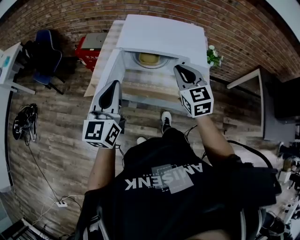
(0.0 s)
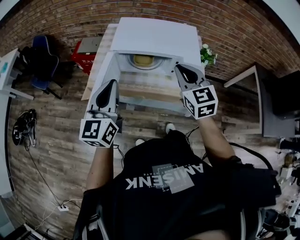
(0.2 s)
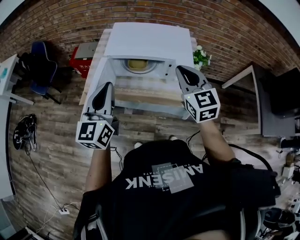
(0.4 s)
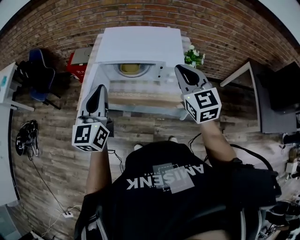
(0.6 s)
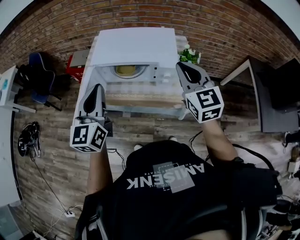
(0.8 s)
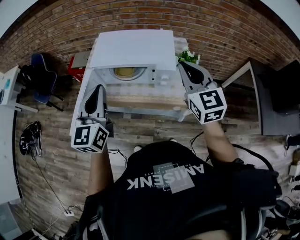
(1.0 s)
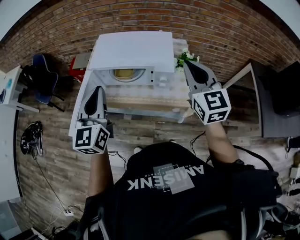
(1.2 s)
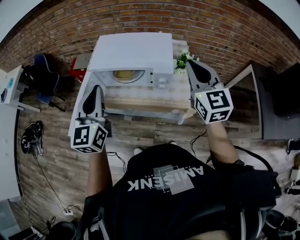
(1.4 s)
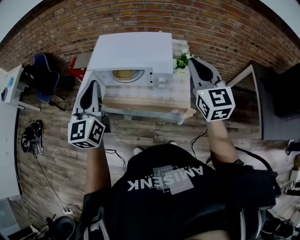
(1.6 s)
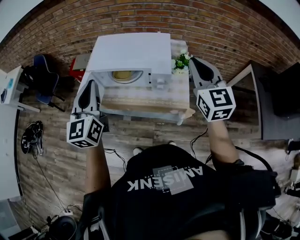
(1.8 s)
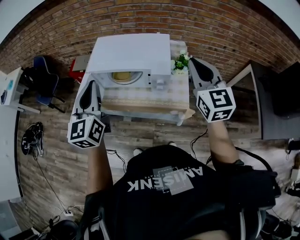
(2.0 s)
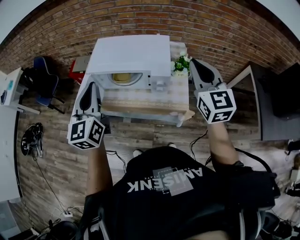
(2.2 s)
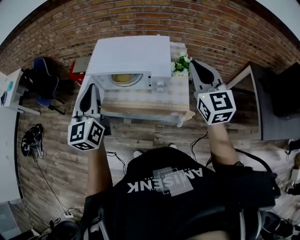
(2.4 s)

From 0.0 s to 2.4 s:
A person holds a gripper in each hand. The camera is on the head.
From 0.0 s to 1.2 s: The right gripper travels to the right and upward by some 25 cm; the left gripper moves to the right and upward, some 15 cm.
From 1.2 s to 2.4 s: The grippers move only a little.

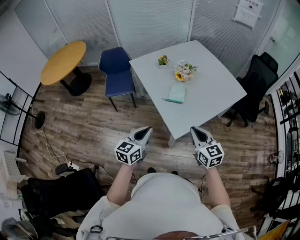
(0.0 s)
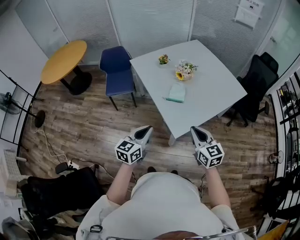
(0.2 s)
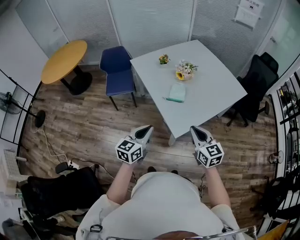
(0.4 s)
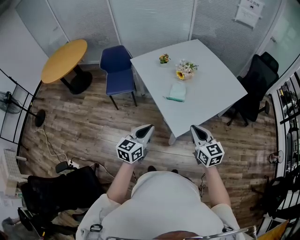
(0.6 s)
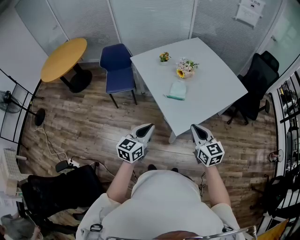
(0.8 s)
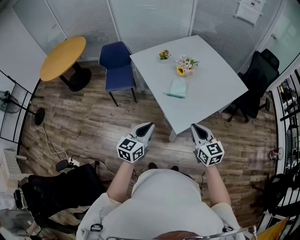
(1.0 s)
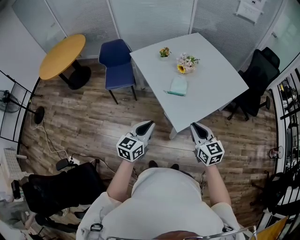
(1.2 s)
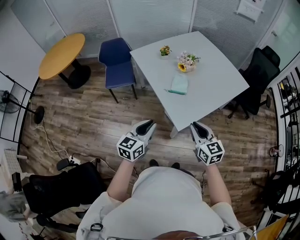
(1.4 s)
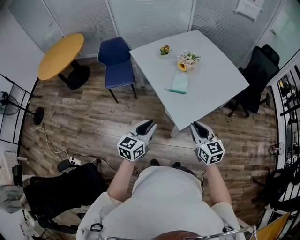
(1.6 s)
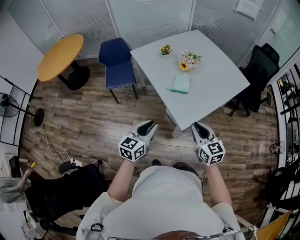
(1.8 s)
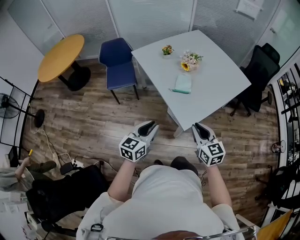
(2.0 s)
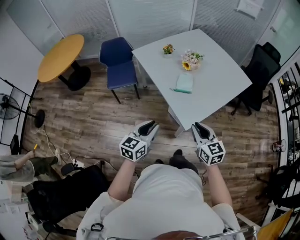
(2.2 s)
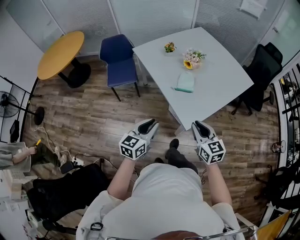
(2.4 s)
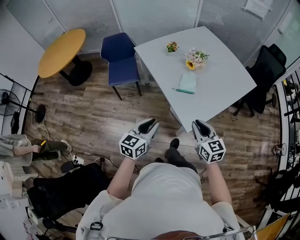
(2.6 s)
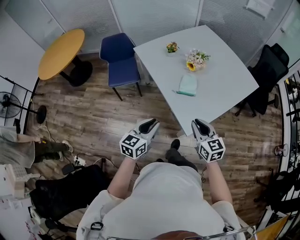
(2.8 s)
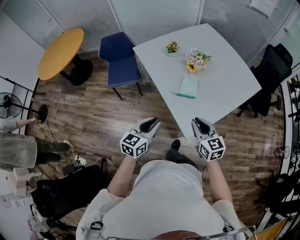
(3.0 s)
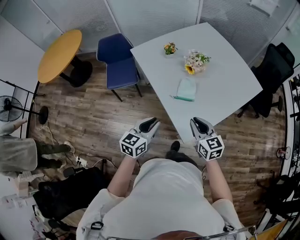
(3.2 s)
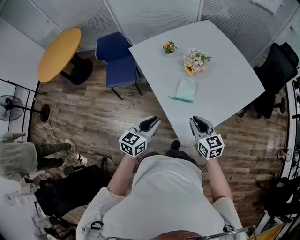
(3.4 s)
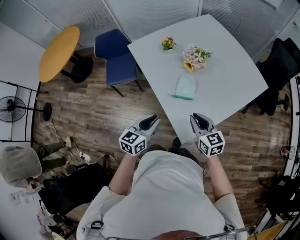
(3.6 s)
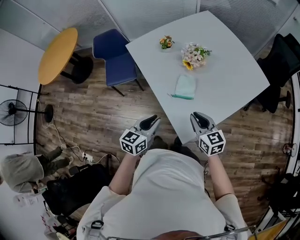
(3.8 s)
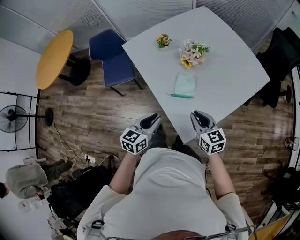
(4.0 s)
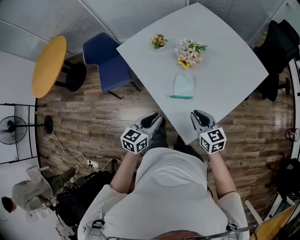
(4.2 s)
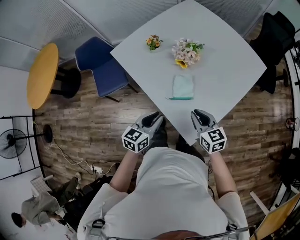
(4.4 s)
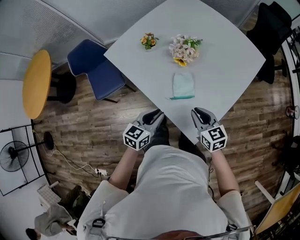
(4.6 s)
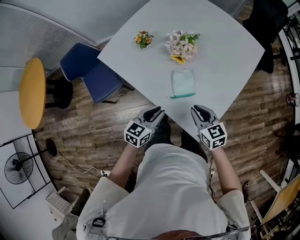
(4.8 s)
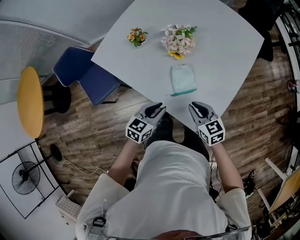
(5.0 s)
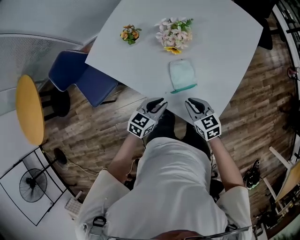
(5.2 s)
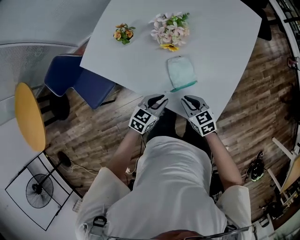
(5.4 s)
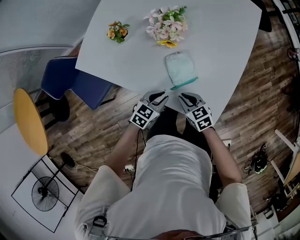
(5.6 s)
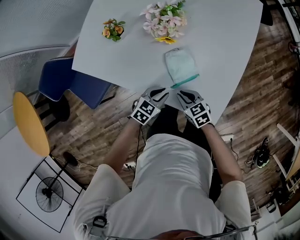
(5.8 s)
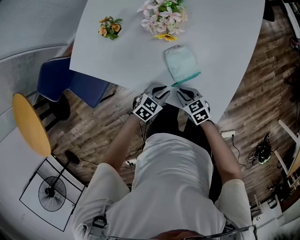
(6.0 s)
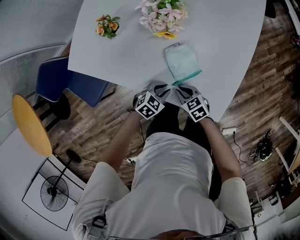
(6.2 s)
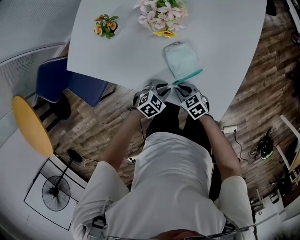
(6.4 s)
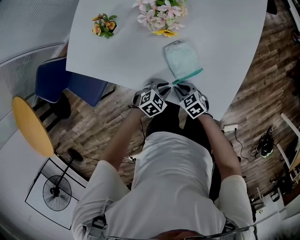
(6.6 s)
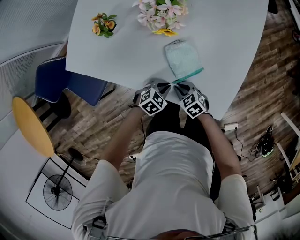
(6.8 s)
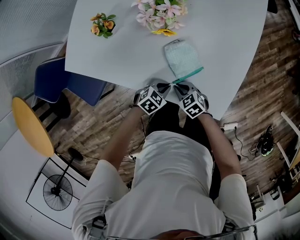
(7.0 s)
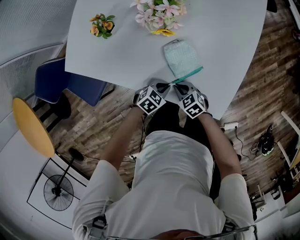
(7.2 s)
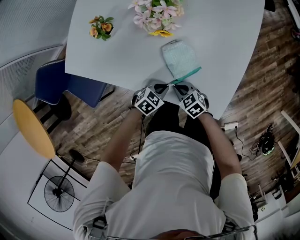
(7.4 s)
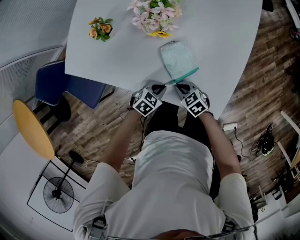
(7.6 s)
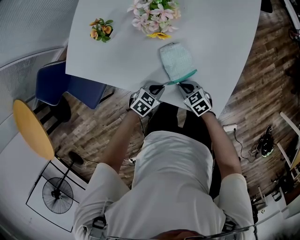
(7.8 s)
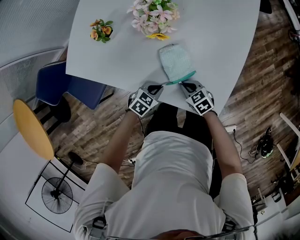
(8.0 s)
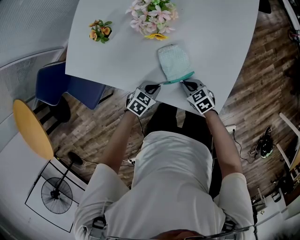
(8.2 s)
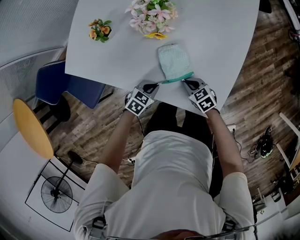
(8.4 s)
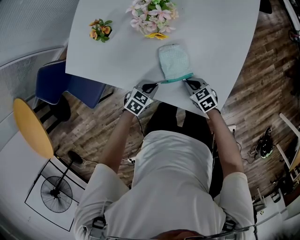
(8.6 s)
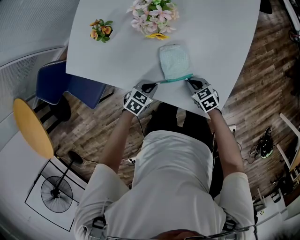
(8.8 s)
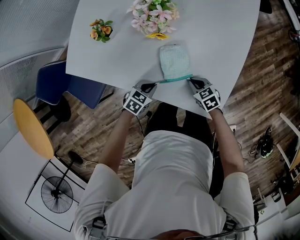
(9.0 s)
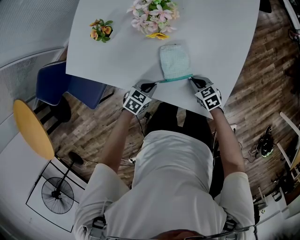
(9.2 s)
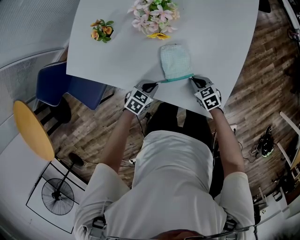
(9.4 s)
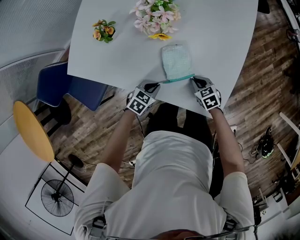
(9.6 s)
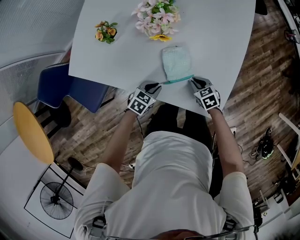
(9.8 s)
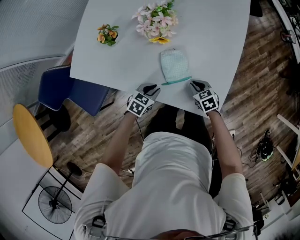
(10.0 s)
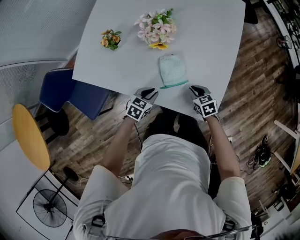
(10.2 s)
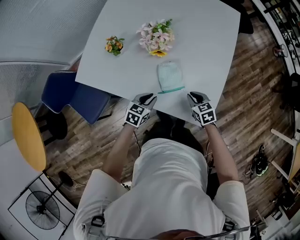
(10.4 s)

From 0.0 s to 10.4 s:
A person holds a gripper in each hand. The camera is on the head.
From 0.0 s to 1.4 s: The grippers make only small movements.
From 1.4 s to 3.0 s: Both grippers travel together forward, approximately 10 cm.
From 3.0 s to 4.4 s: The right gripper moves forward and downward, some 20 cm; the left gripper moves forward, roughly 20 cm.
From 4.4 s to 6.0 s: Both grippers travel together downward, approximately 25 cm. The left gripper swivels about 60 degrees. The right gripper rotates approximately 30 degrees.
From 6.0 s to 7.4 s: The grippers stay close to where they were, moving slightly.
From 7.4 s to 9.0 s: The right gripper shifts by approximately 10 cm.
From 9.0 s to 10.4 s: The grippers both shift upward by roughly 10 cm.

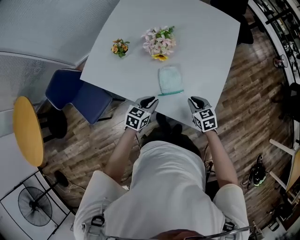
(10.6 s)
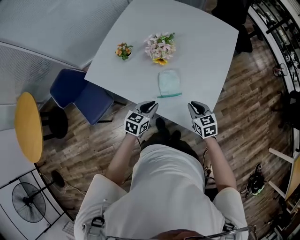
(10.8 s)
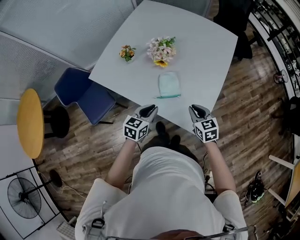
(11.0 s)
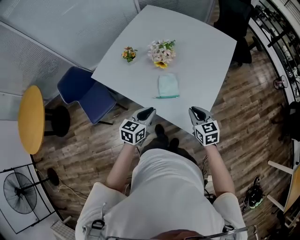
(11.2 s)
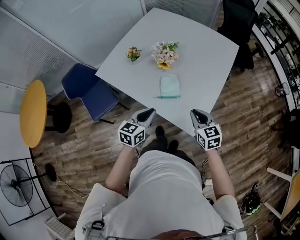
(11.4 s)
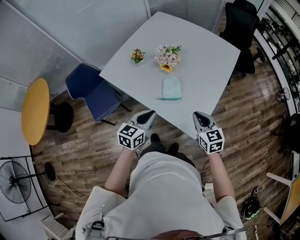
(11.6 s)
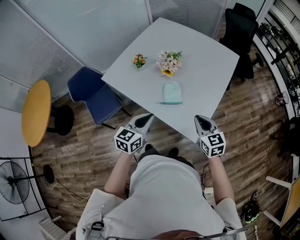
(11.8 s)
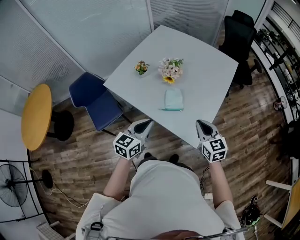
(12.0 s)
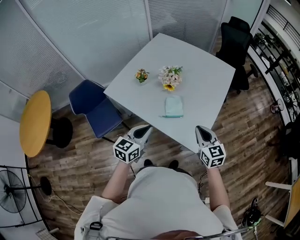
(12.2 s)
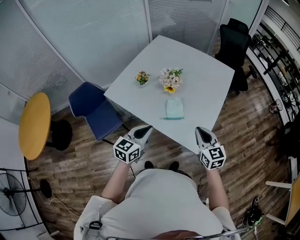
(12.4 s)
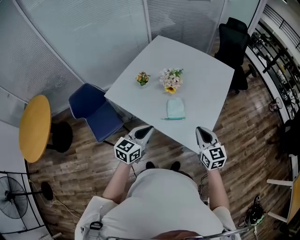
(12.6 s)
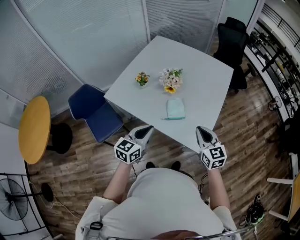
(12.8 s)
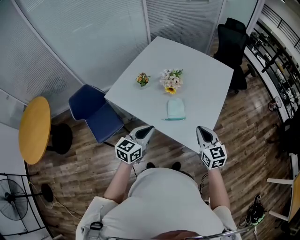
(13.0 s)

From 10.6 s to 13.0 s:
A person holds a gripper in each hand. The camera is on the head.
From 10.6 s to 11.8 s: The grippers both shift upward and backward by some 25 cm. The right gripper changes its angle by some 20 degrees. Meanwhile the left gripper changes its angle by about 30 degrees.
From 11.8 s to 13.0 s: The left gripper moves to the left, approximately 5 cm. The right gripper travels upward and to the left by some 10 cm.

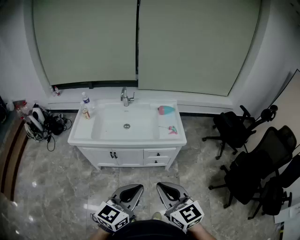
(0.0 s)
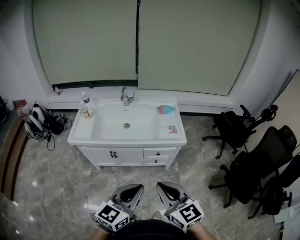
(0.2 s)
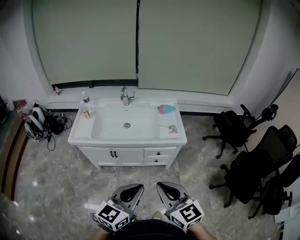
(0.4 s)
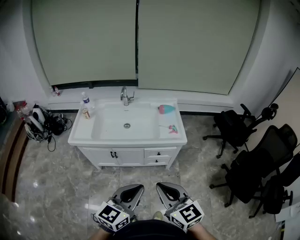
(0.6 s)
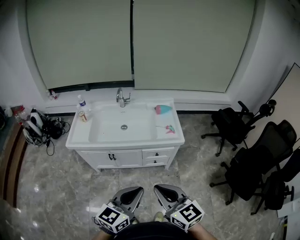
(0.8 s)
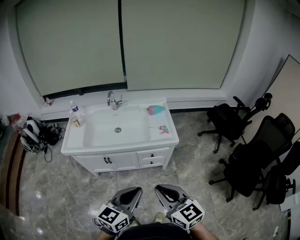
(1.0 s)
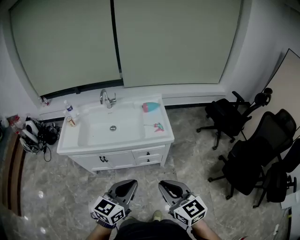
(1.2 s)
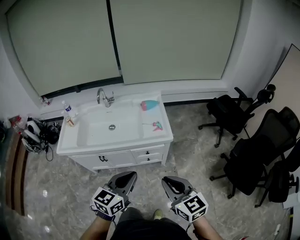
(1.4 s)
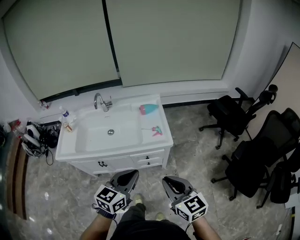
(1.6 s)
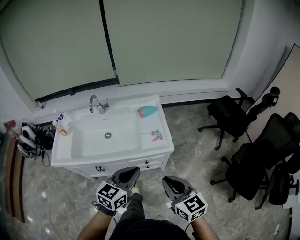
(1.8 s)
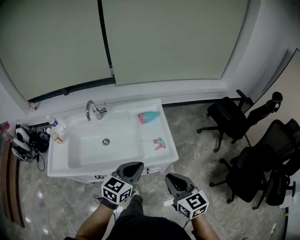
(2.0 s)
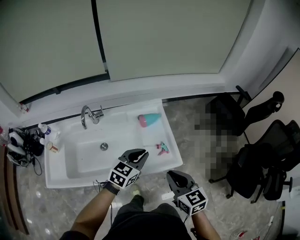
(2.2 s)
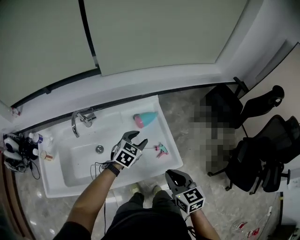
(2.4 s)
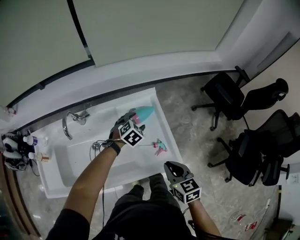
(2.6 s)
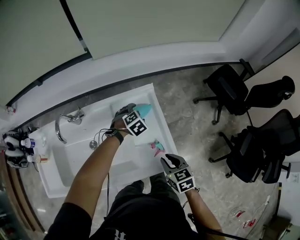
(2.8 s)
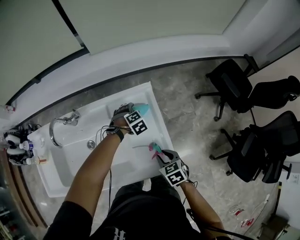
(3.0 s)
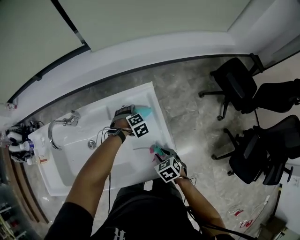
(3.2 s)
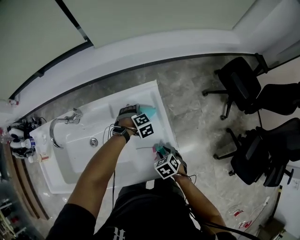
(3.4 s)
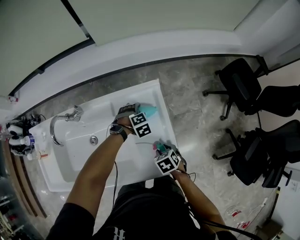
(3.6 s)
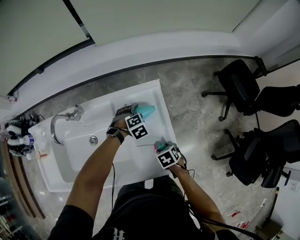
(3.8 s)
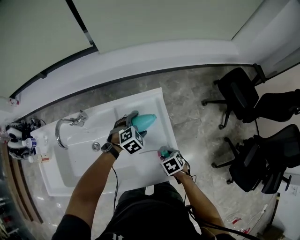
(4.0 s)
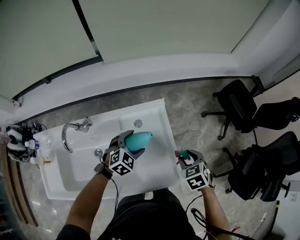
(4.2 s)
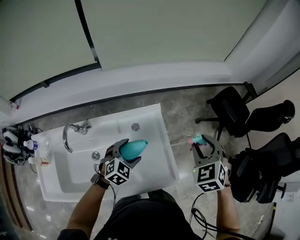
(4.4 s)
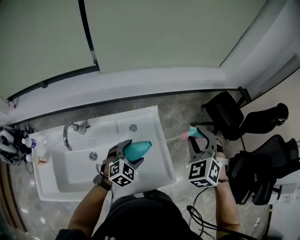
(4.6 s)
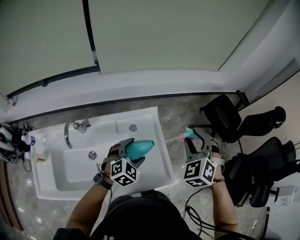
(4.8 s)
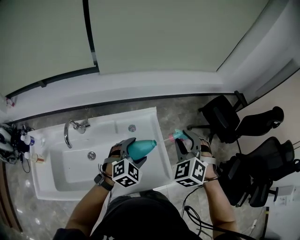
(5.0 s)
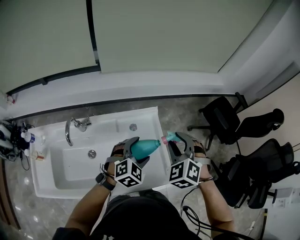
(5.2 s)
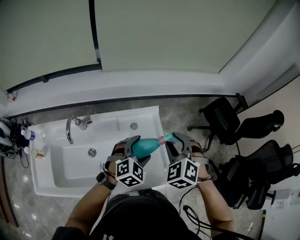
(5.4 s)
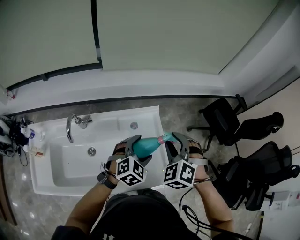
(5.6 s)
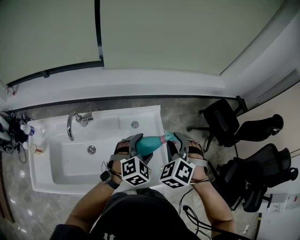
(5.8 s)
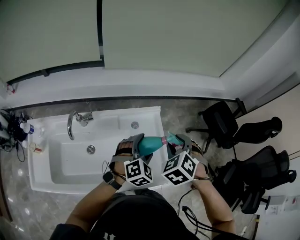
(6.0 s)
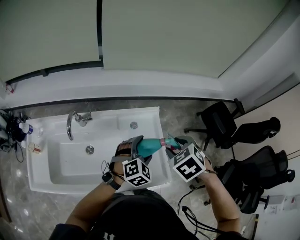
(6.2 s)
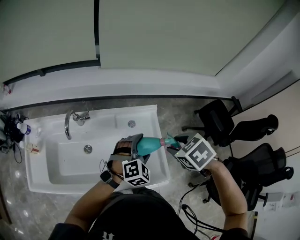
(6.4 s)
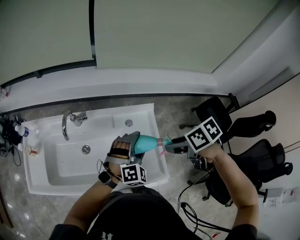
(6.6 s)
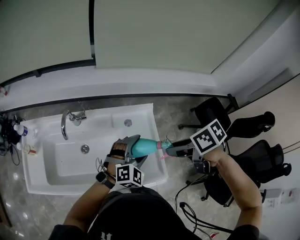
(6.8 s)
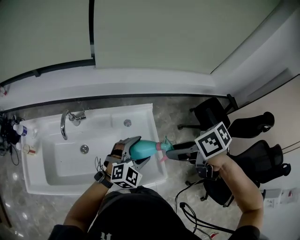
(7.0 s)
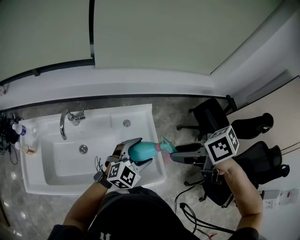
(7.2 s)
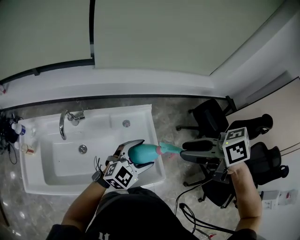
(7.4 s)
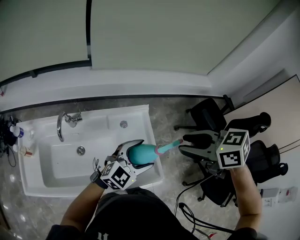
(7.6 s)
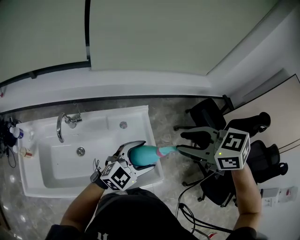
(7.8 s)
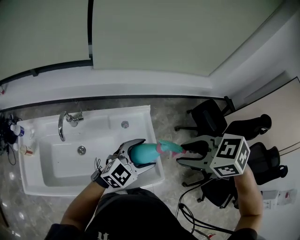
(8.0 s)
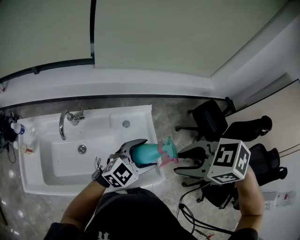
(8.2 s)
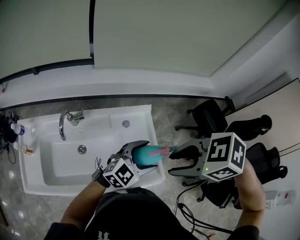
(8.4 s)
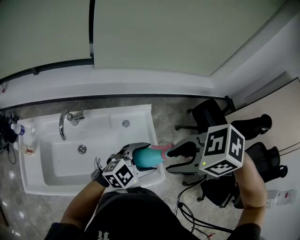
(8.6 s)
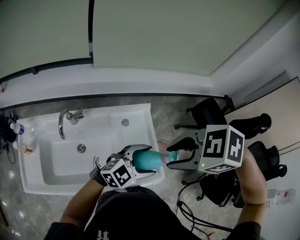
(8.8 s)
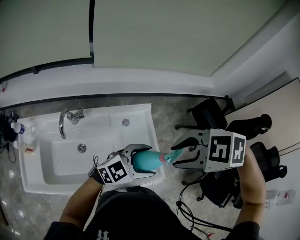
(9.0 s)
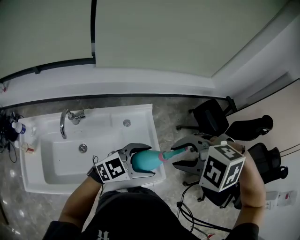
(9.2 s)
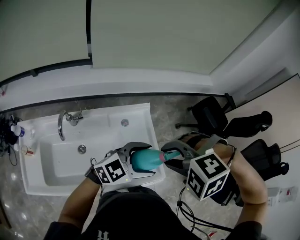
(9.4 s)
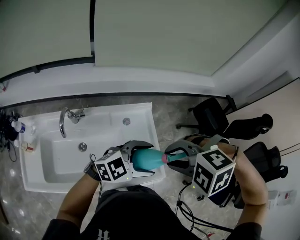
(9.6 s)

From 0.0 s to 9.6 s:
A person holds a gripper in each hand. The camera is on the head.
From 0.0 s to 1.6 s: The right gripper shifts about 20 cm to the right and forward. Meanwhile the left gripper is displaced forward and to the right by roughly 20 cm.
From 1.6 s to 3.2 s: The two grippers travel together, some 60 cm. The left gripper angles its fingers downward, by about 60 degrees, and opens its fingers. Meanwhile the right gripper tips its fingers downward by roughly 50 degrees, and opens its fingers.
From 3.2 s to 4.8 s: Both grippers move upward, some 30 cm. The right gripper turns by approximately 50 degrees. Meanwhile the left gripper points its fingers about 30 degrees further upward.
From 4.8 s to 6.4 s: The right gripper moves about 10 cm, and tips its fingers downward by approximately 30 degrees.
From 6.4 s to 8.0 s: The left gripper moves upward, roughly 5 cm, and changes its angle by approximately 40 degrees. Meanwhile the right gripper shifts approximately 10 cm upward, and rotates about 20 degrees.
From 8.0 s to 9.6 s: The left gripper changes its angle by some 20 degrees. The right gripper changes place by some 5 cm, and rotates around the line of its fingers by roughly 50 degrees, counterclockwise from behind.
